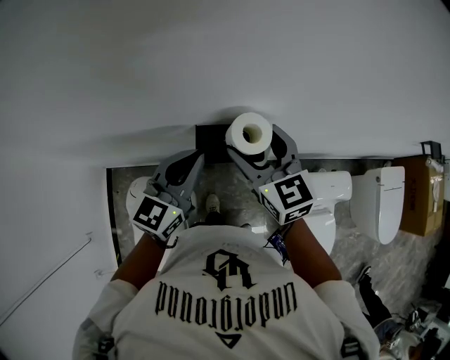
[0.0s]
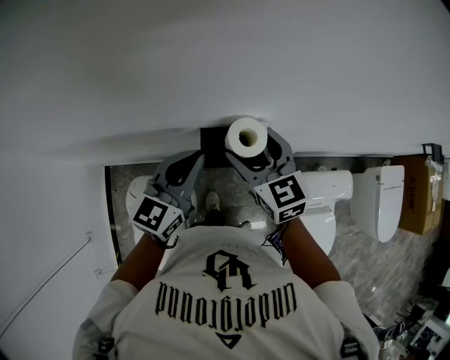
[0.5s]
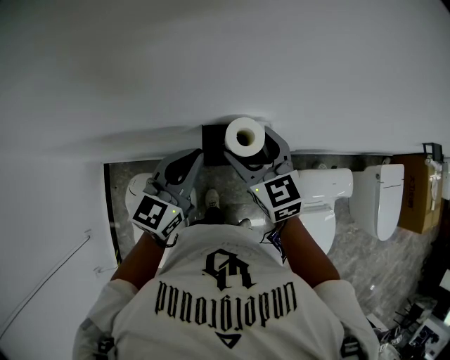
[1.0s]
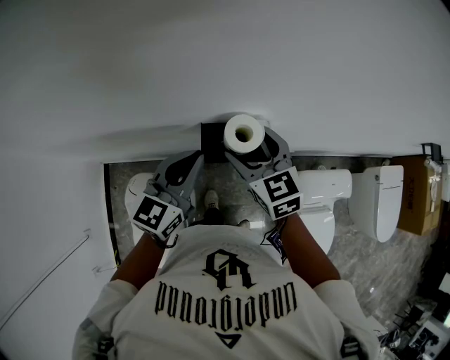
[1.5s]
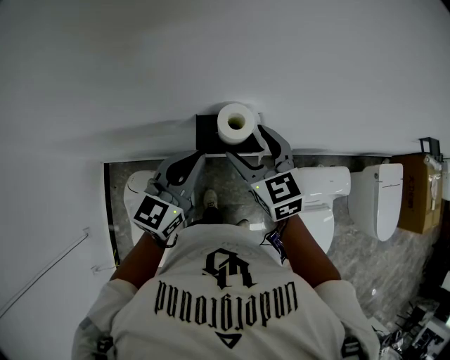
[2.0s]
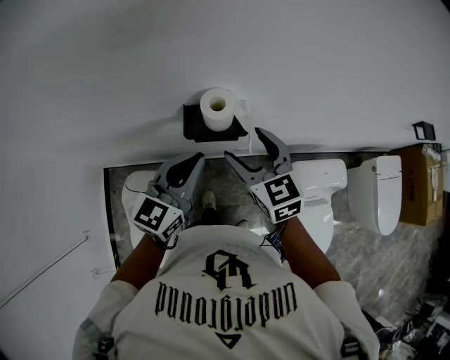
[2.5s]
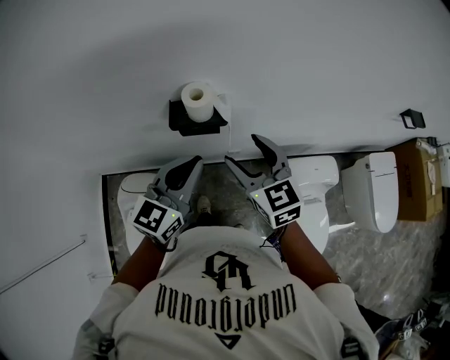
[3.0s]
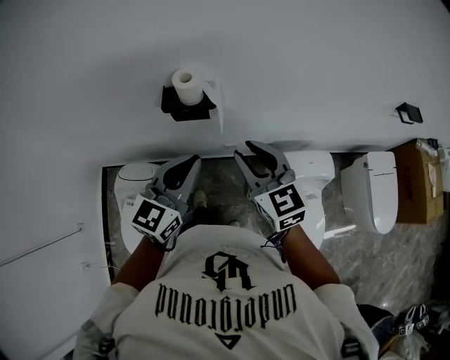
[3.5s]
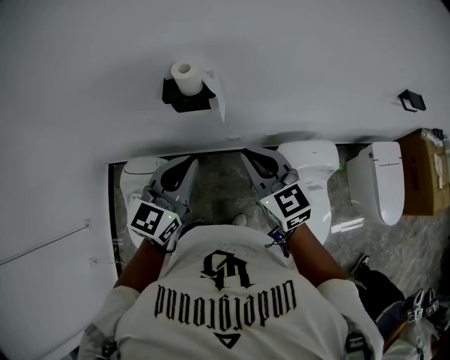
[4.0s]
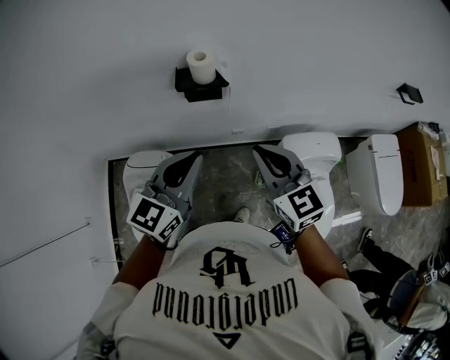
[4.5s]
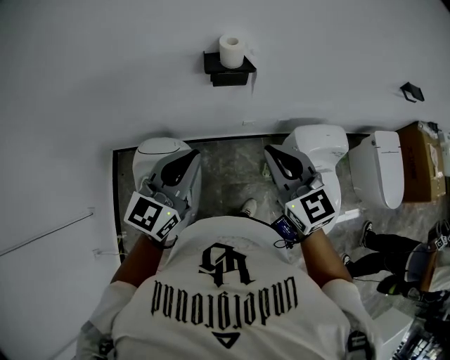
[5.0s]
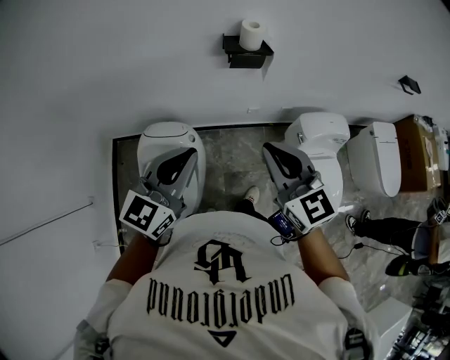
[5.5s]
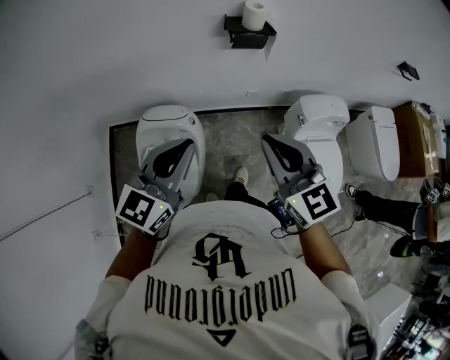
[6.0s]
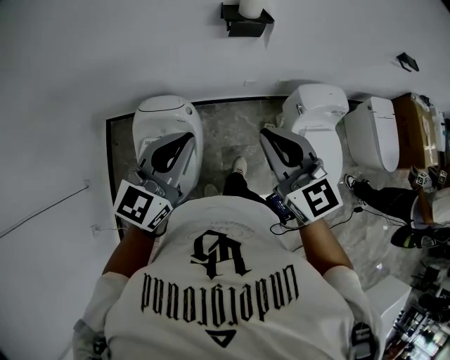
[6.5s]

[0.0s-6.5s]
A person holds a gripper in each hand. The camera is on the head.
0.0s to 2.0s: The right gripper moves about 5 cm.
2.0s to 4.5s: The right gripper heads backward and to the right, covering approximately 30 cm, and closes. The left gripper is displaced backward by some 25 cm.
4.5s to 6.5s: The left gripper goes some 30 cm to the left and backward. The right gripper travels backward and to the left by approximately 30 cm.

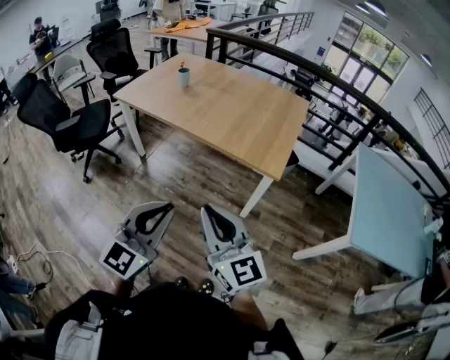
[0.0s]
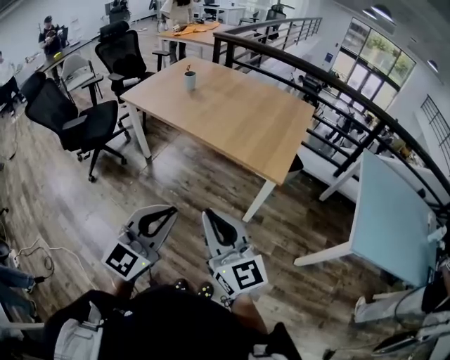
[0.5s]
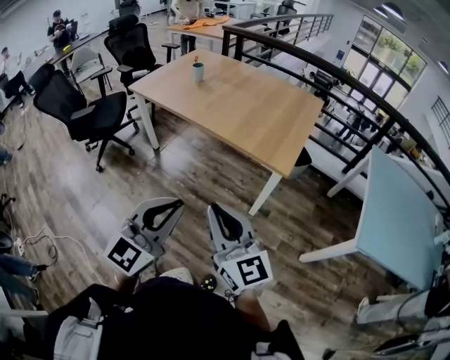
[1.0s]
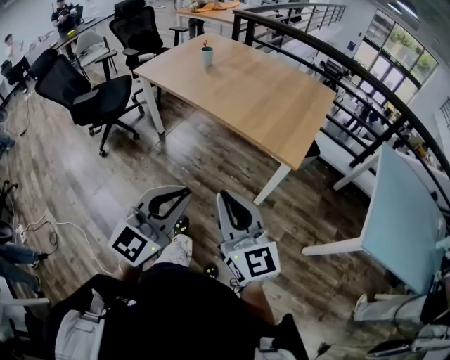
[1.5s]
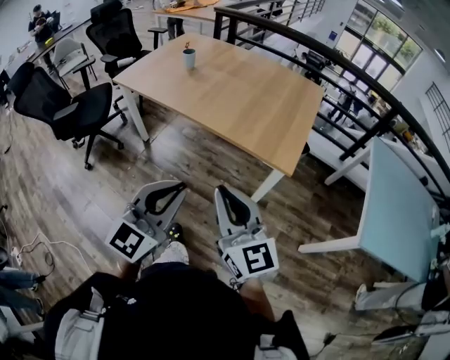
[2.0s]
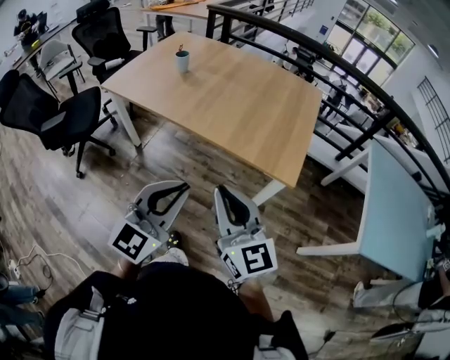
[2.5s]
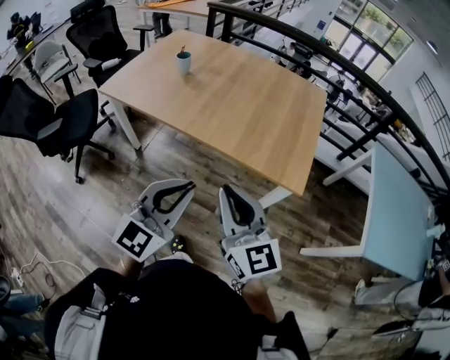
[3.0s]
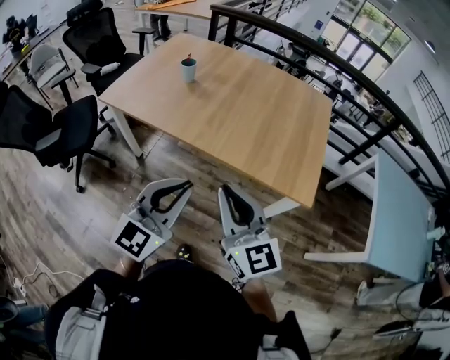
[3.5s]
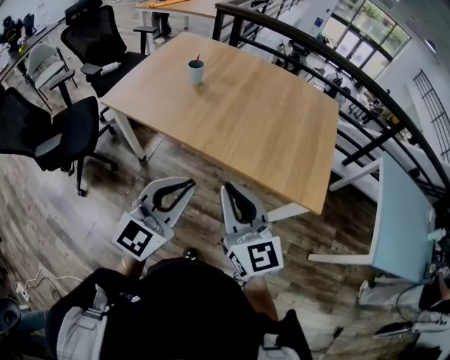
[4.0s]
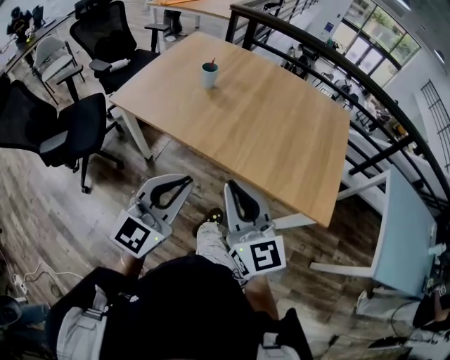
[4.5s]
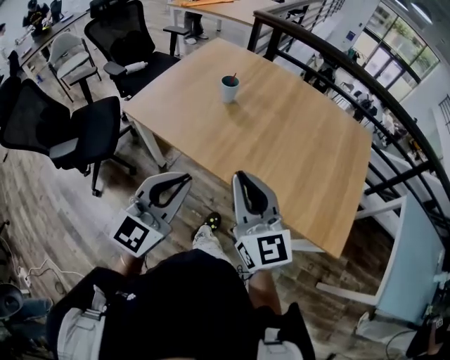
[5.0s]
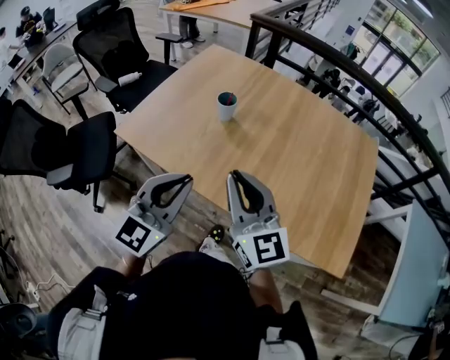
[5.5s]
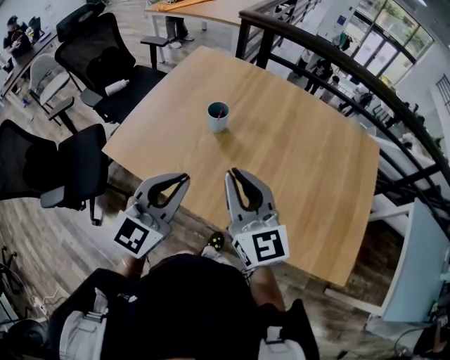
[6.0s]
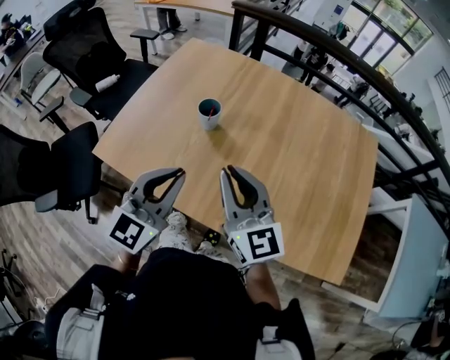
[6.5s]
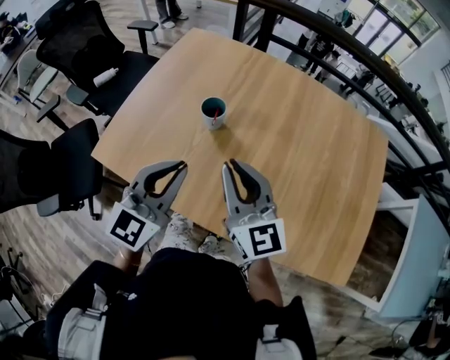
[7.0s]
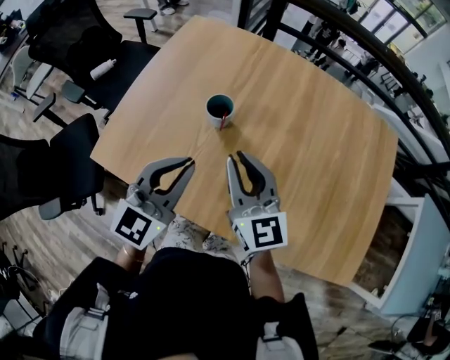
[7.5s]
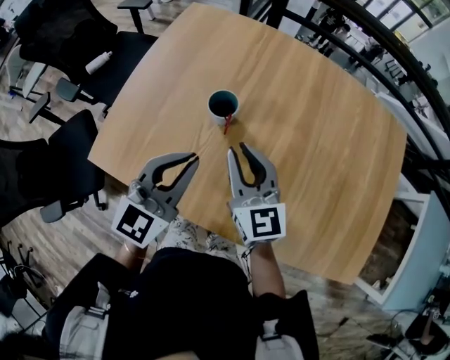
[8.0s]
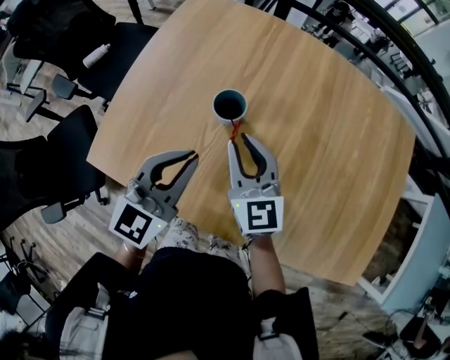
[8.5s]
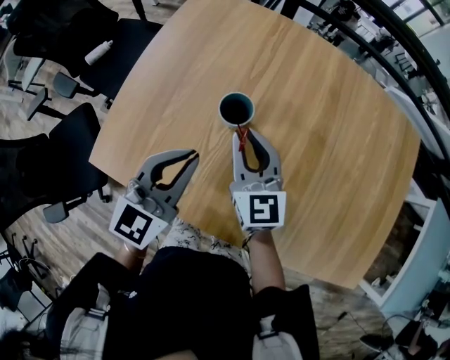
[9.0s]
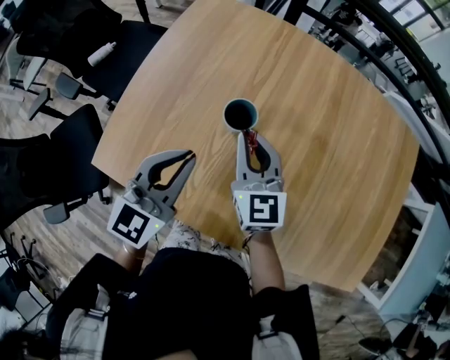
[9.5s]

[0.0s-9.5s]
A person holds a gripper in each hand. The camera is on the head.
0.0s to 2.0s: The grippers both shift forward by about 10 cm.
2.0s to 4.0s: The two grippers go roughly 35 cm forward and to the left.
4.0s to 5.5s: The left gripper goes roughly 30 cm forward and to the left; the right gripper travels forward by some 30 cm.
5.5s to 7.5s: Both grippers move forward, about 25 cm.
7.5s to 9.5s: The left gripper shifts approximately 10 cm forward and to the left. Meanwhile the right gripper shifts roughly 15 cm forward, downward and to the left.

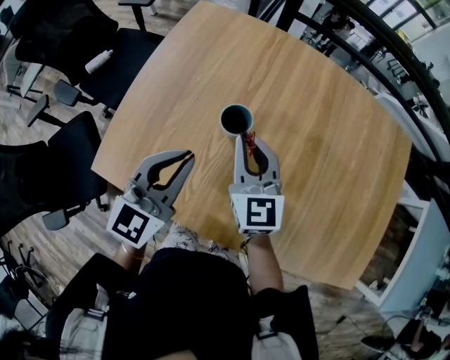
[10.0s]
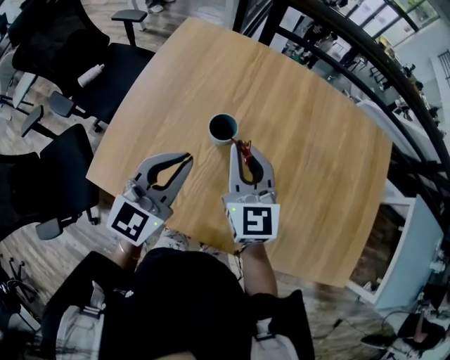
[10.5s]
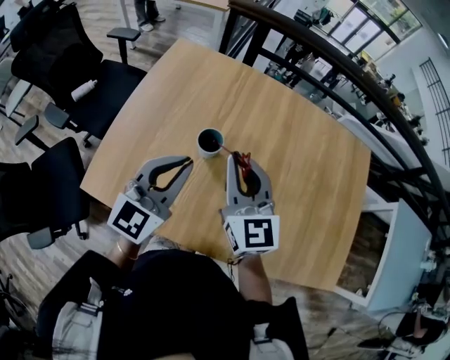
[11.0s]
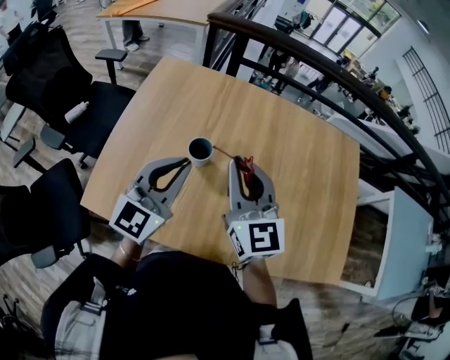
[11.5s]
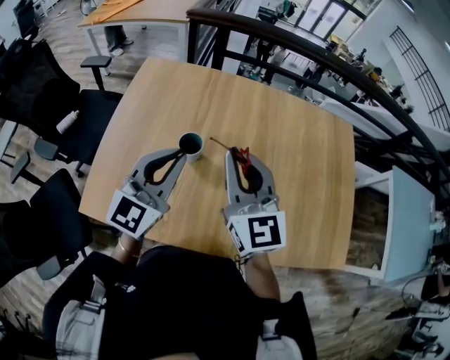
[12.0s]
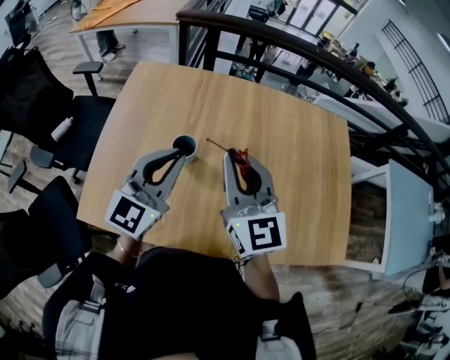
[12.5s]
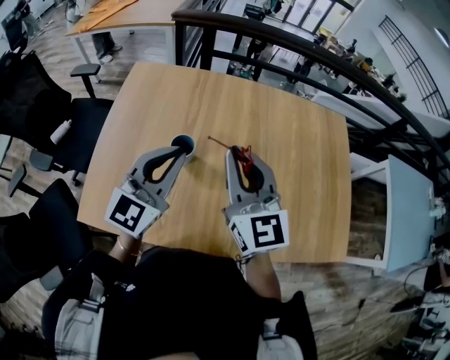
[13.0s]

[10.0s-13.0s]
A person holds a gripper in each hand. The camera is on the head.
10.0s to 11.5s: The left gripper shifts about 10 cm upward. Meanwhile the right gripper shifts roughly 15 cm upward and backward.
11.5s to 13.0s: There are only small adjustments of the grippers.

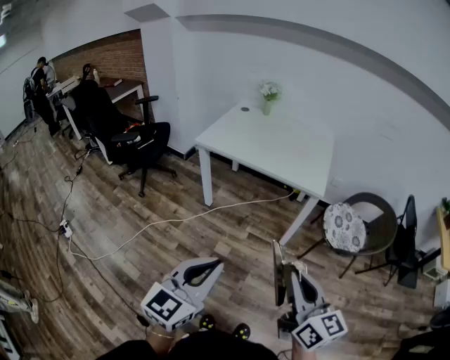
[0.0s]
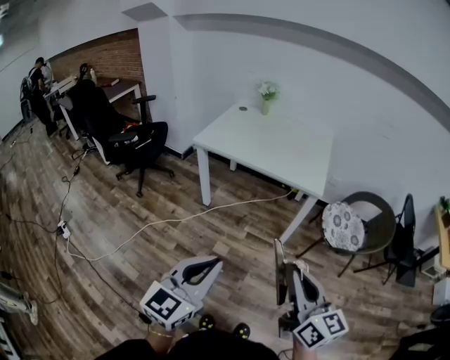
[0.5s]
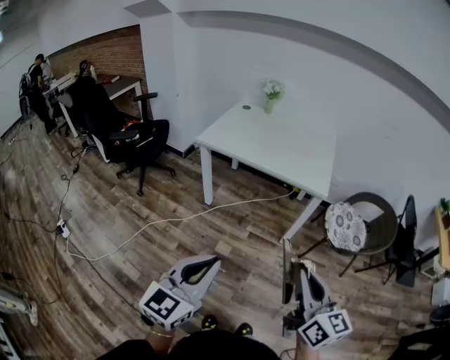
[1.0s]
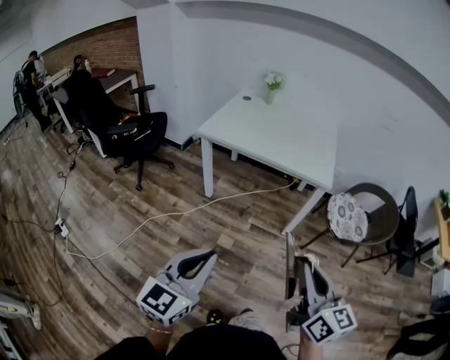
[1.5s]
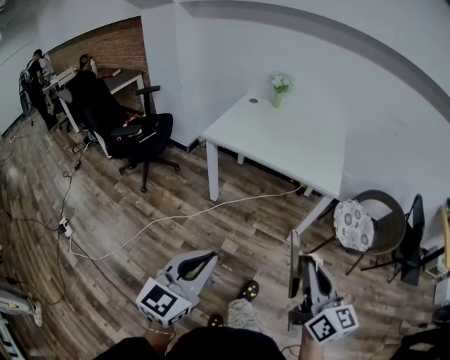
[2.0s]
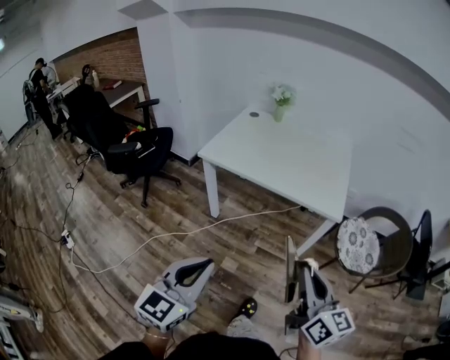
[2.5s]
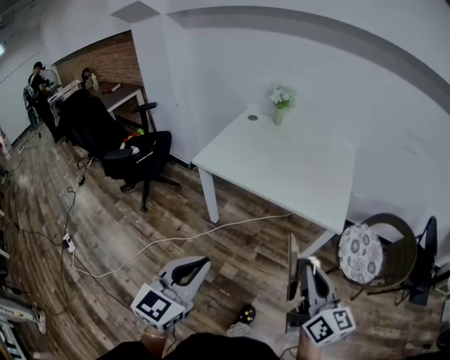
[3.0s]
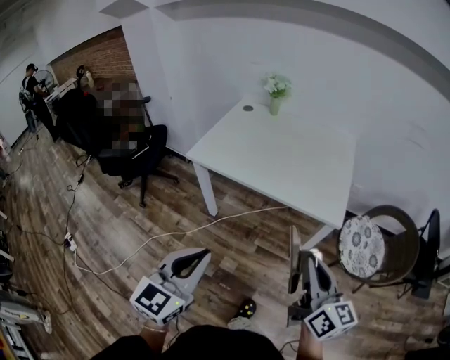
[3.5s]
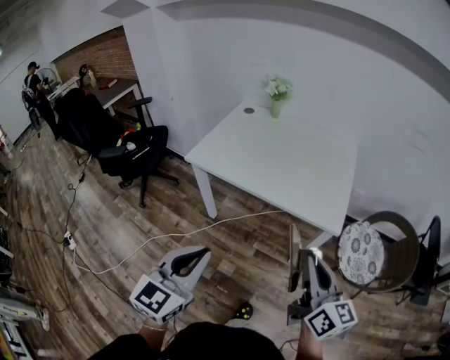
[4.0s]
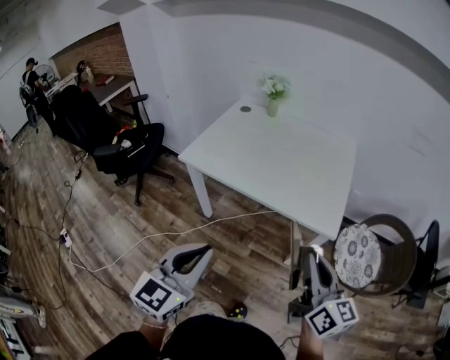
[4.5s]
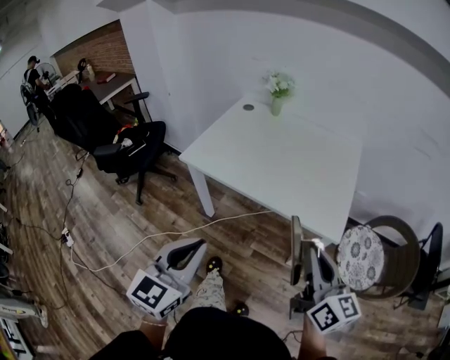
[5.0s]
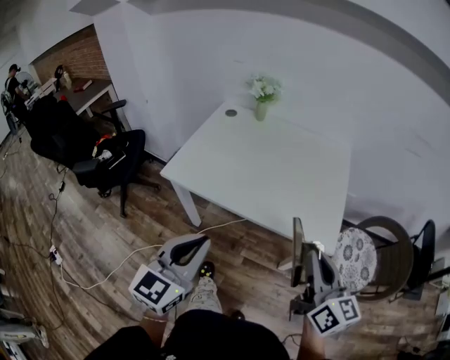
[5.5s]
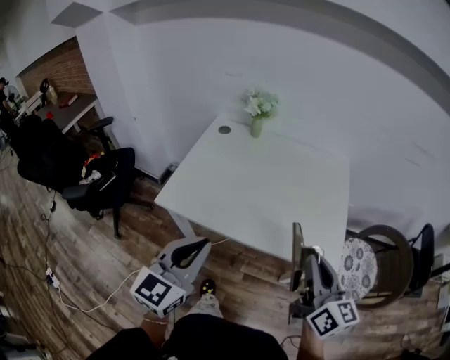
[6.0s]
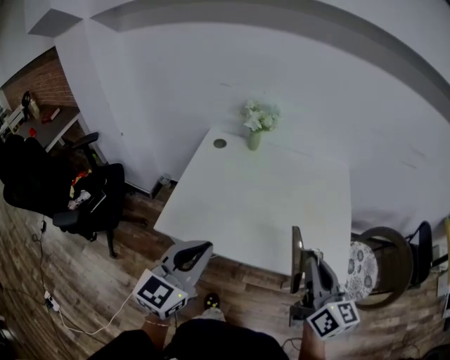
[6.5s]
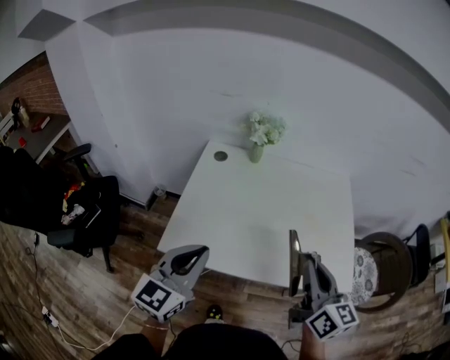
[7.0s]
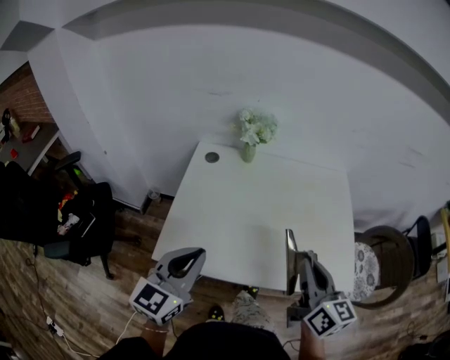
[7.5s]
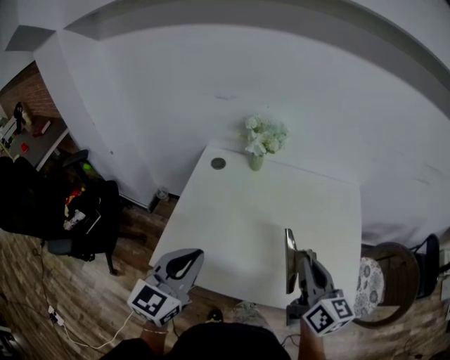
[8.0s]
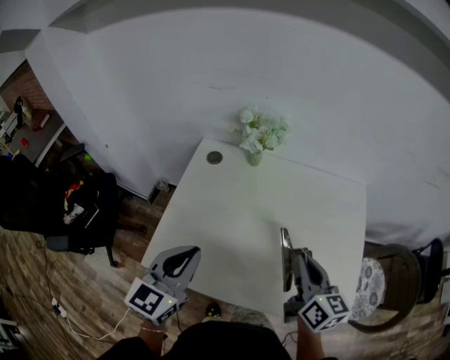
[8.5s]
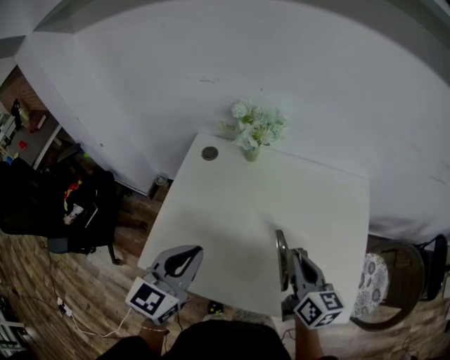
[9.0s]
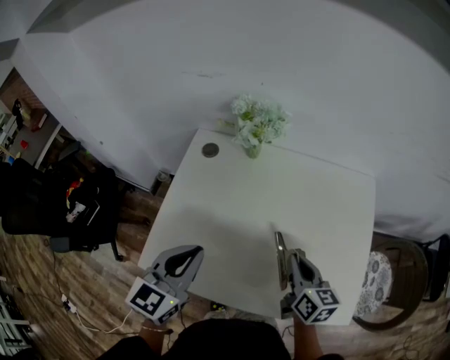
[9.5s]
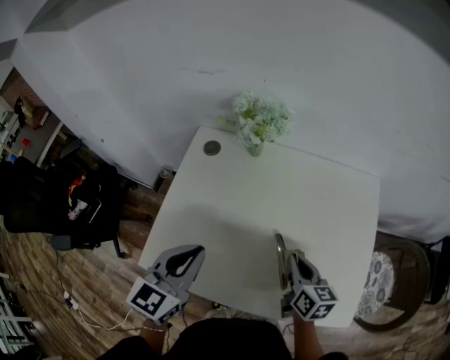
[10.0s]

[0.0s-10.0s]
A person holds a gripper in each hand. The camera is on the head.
0.0s to 2.0s: The right gripper goes approximately 10 cm forward and to the left. Meanwhile the left gripper moves to the left, about 10 cm.
2.0s to 4.0s: Both grippers travel together forward, some 25 cm.
4.0s to 6.0s: Both grippers travel together forward, approximately 25 cm.
6.0s to 8.0s: Both grippers move forward and to the left, some 25 cm.
8.0s to 10.0s: The left gripper travels forward and downward by approximately 10 cm. Meanwhile the right gripper moves downward and forward, roughly 20 cm, and turns by some 20 degrees.
